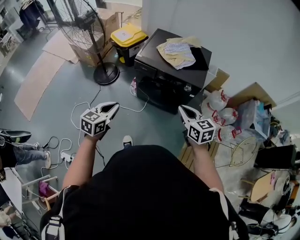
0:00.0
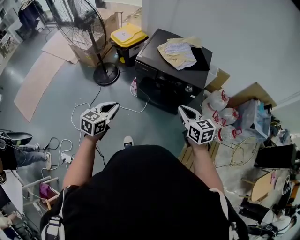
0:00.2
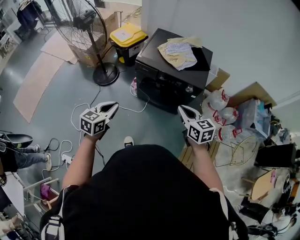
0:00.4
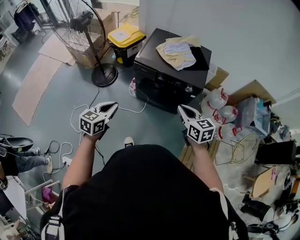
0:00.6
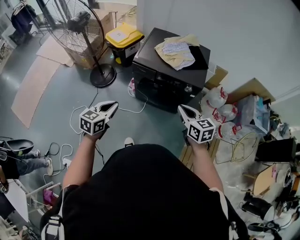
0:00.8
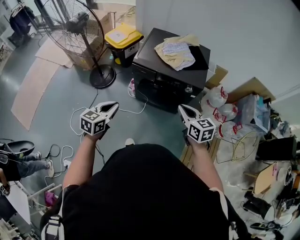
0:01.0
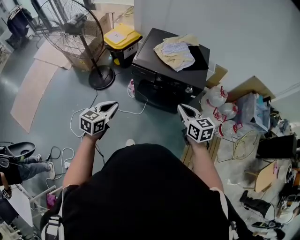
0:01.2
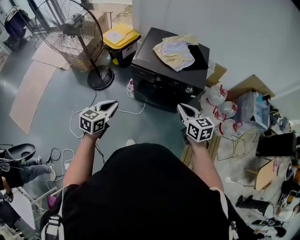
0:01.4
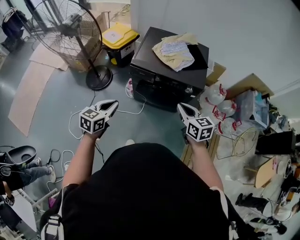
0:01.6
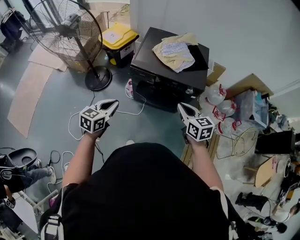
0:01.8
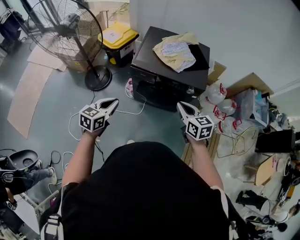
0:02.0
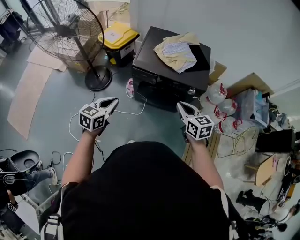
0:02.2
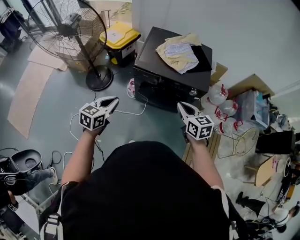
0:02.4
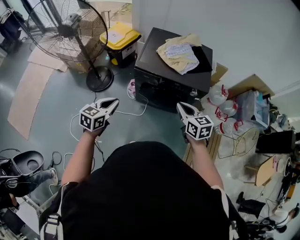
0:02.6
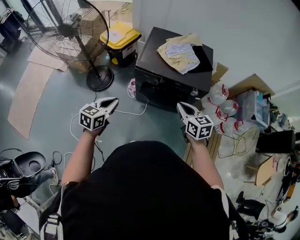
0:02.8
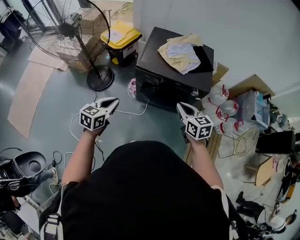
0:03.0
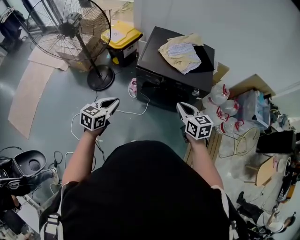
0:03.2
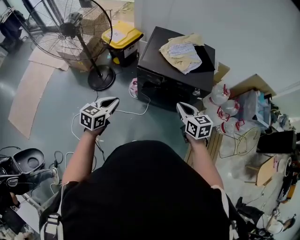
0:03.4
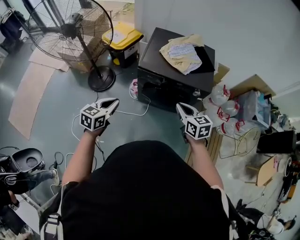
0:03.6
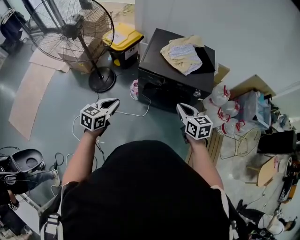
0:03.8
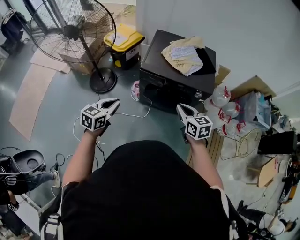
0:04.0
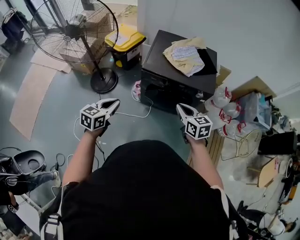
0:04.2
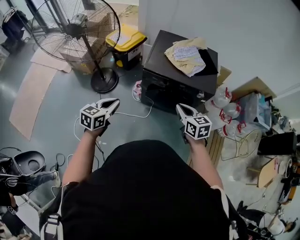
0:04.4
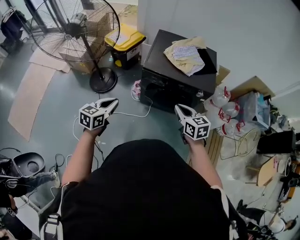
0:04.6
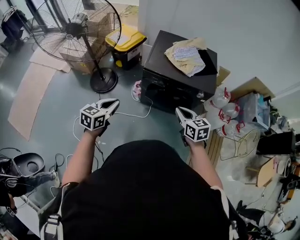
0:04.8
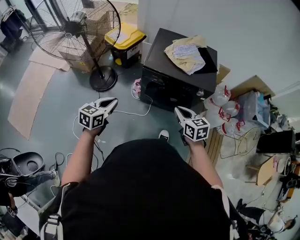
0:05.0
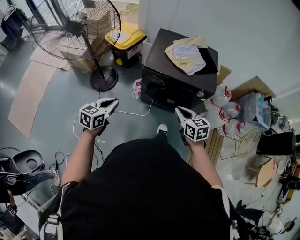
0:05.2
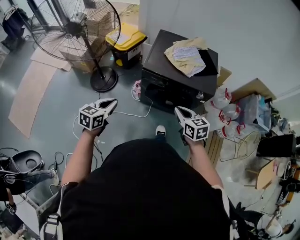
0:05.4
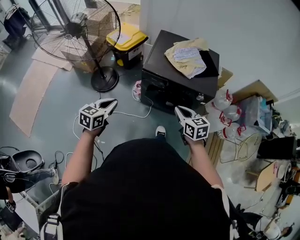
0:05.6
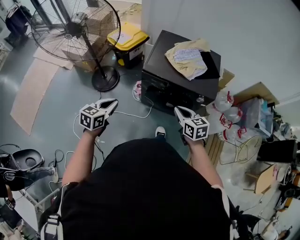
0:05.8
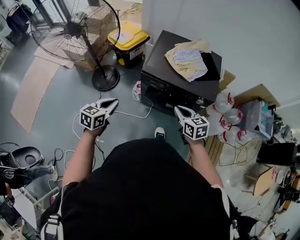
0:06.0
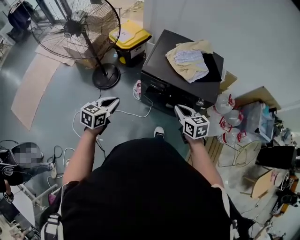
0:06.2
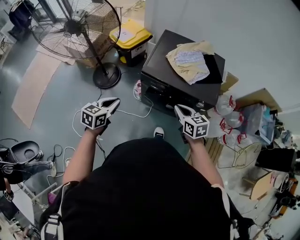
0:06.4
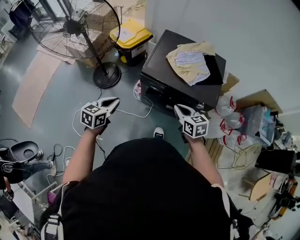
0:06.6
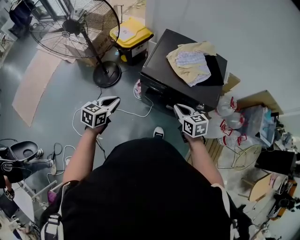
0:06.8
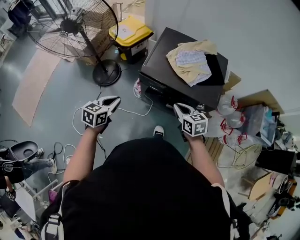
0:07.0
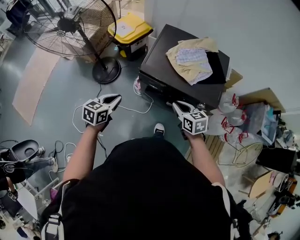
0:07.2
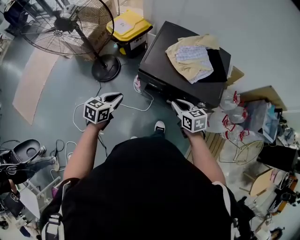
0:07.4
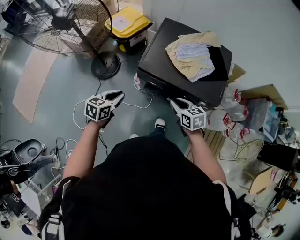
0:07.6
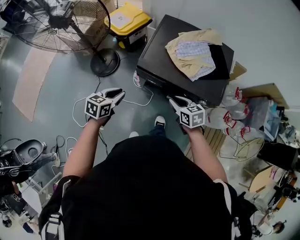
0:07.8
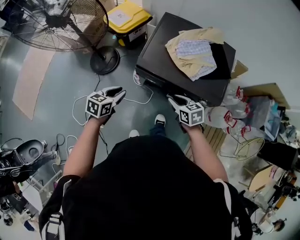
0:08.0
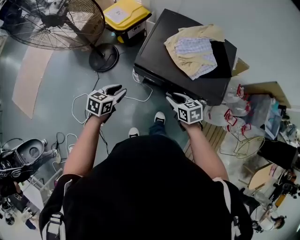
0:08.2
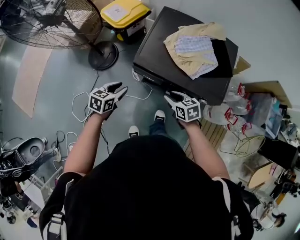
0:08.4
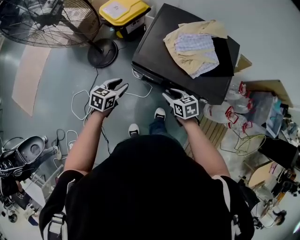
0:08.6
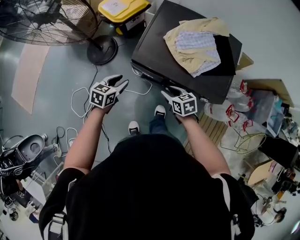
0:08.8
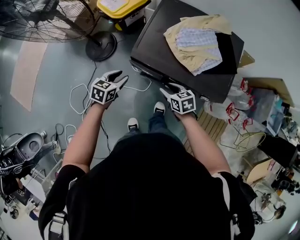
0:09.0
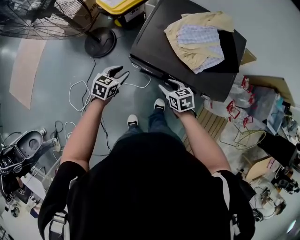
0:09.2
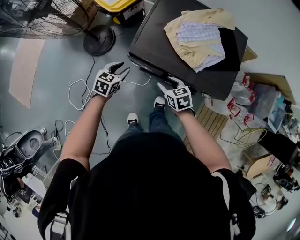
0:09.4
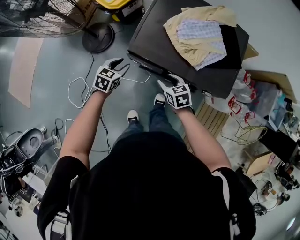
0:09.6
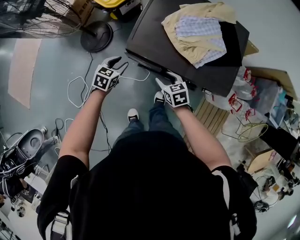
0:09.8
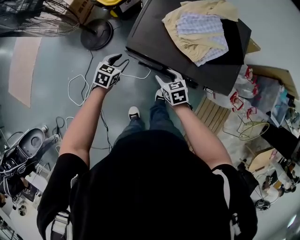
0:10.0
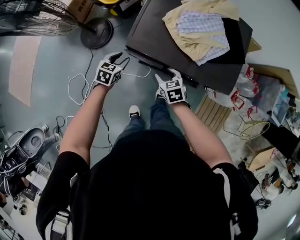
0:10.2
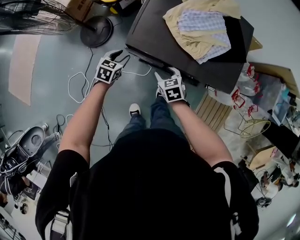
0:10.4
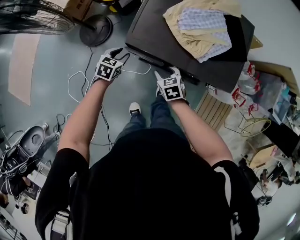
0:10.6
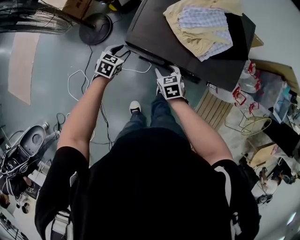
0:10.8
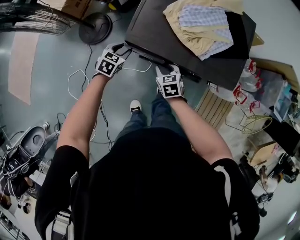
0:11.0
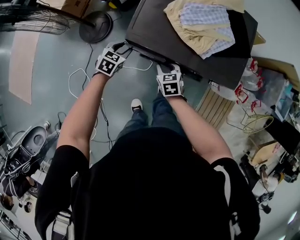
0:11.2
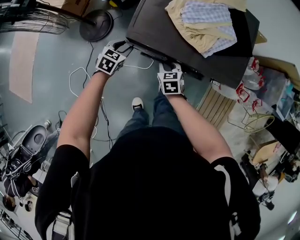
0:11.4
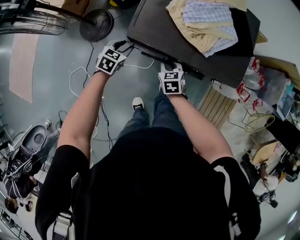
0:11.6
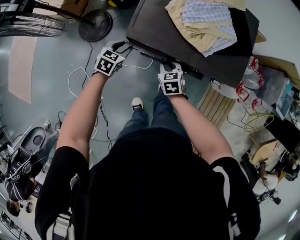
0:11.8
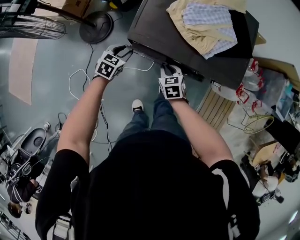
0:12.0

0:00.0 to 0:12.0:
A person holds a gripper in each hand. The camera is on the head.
0:00.0 to 0:01.6: The two grippers go about 10 cm forward.
0:01.6 to 0:03.0: Both grippers travel together to the left, approximately 5 cm.
0:03.0 to 0:04.4: The right gripper changes place by some 5 cm.
0:04.4 to 0:06.0: The right gripper changes place by approximately 5 cm.
0:06.0 to 0:07.6: The left gripper shifts some 15 cm forward, downward and to the right. The right gripper moves forward and downward, roughly 15 cm.
0:07.6 to 0:09.0: The two grippers go some 15 cm downward and forward. The left gripper opens. Meanwhile the right gripper opens its fingers.
0:09.0 to 0:10.4: The right gripper moves downward, some 5 cm; the left gripper shifts about 10 cm downward and forward.
0:10.4 to 0:12.0: The right gripper closes.

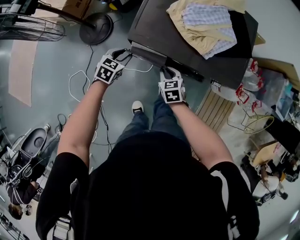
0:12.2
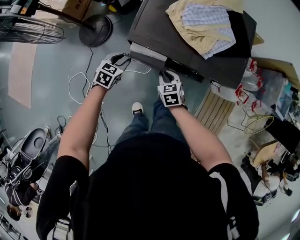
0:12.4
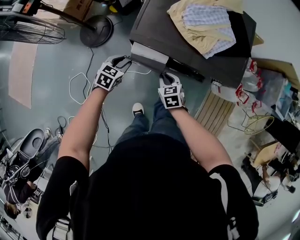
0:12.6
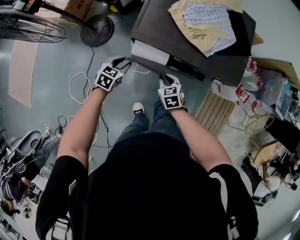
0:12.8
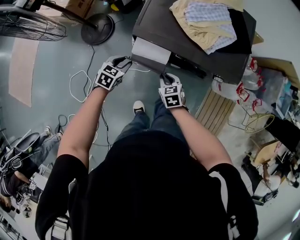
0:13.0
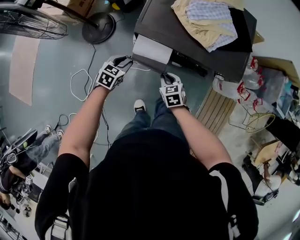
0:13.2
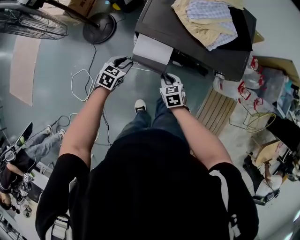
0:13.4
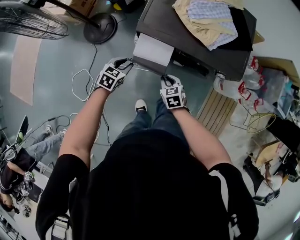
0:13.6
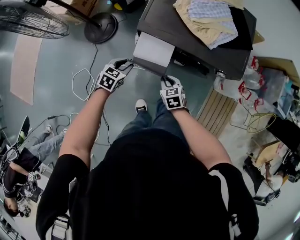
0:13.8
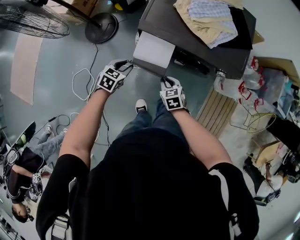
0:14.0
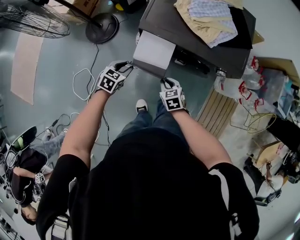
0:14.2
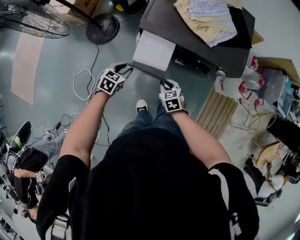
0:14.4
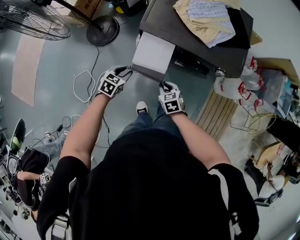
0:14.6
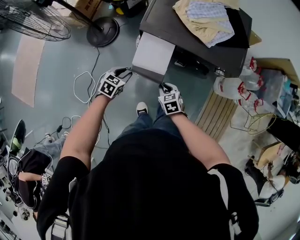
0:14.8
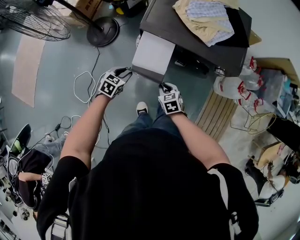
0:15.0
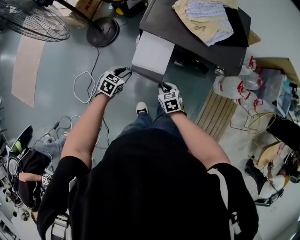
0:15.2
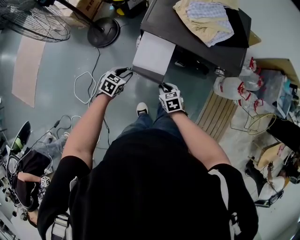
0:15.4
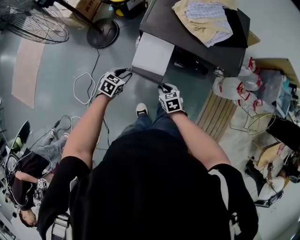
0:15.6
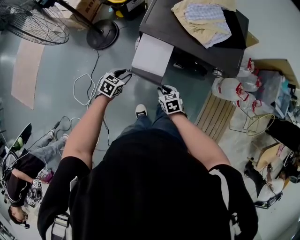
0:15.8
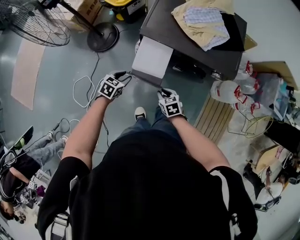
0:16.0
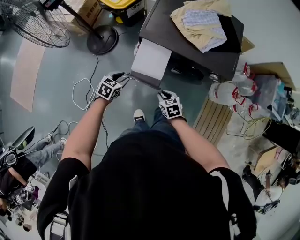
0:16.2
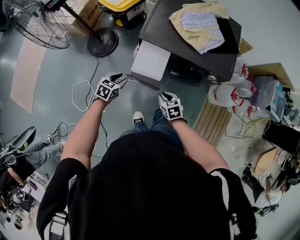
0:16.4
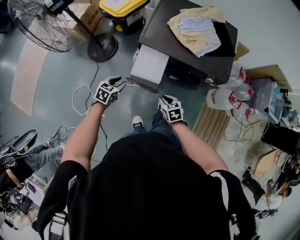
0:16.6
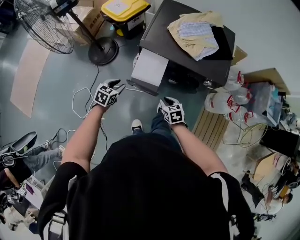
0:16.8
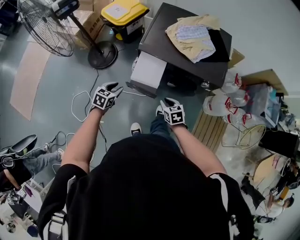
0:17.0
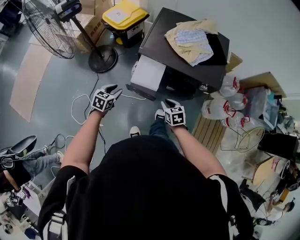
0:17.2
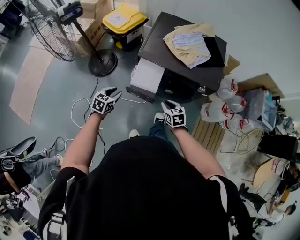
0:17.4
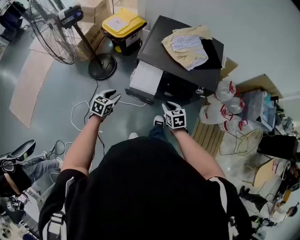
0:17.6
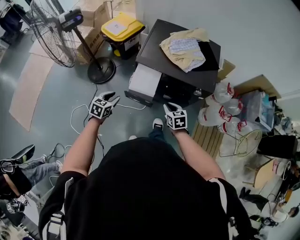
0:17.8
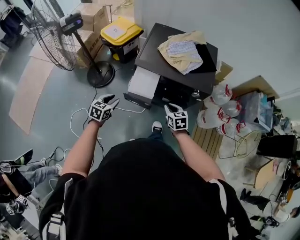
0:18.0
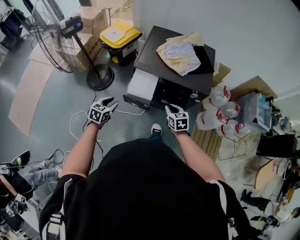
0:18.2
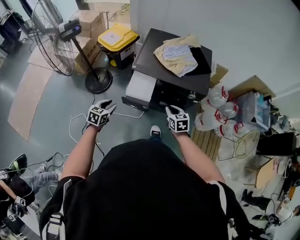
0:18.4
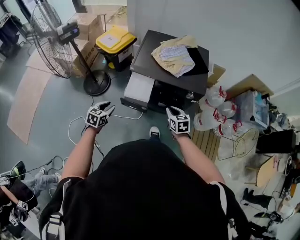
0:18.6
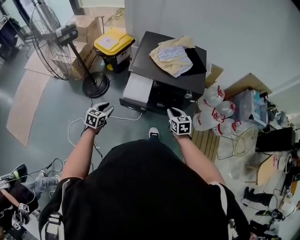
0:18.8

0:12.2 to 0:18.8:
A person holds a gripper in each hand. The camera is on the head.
0:12.2 to 0:13.8: Both grippers move backward, approximately 10 cm.
0:13.8 to 0:15.4: The two grippers go some 5 cm backward.
0:15.4 to 0:17.2: Both grippers travel together upward, approximately 10 cm.
0:17.2 to 0:18.8: The right gripper moves upward and to the right, roughly 15 cm. Meanwhile the left gripper moves upward, approximately 5 cm.

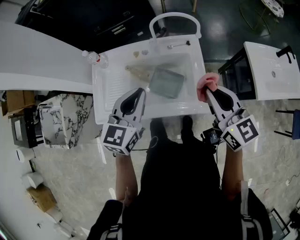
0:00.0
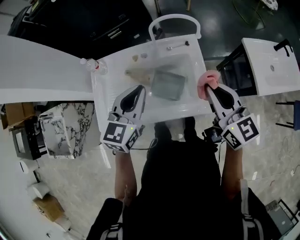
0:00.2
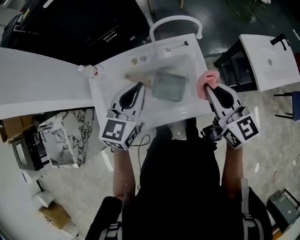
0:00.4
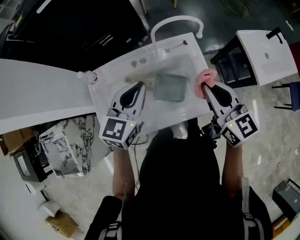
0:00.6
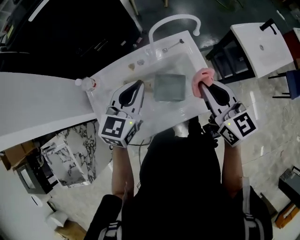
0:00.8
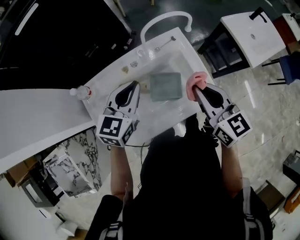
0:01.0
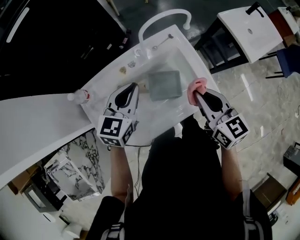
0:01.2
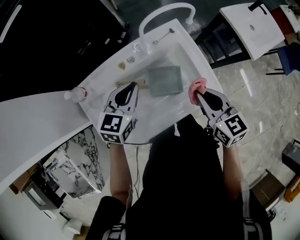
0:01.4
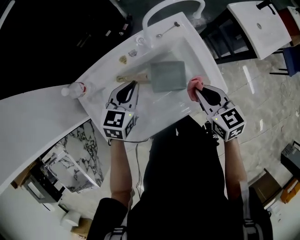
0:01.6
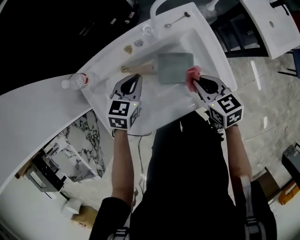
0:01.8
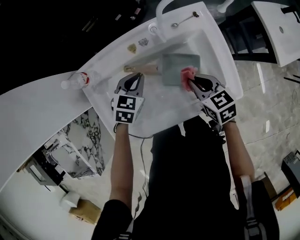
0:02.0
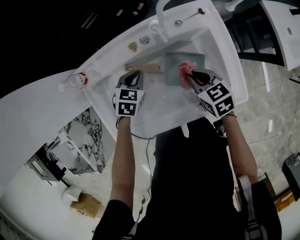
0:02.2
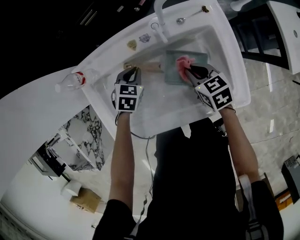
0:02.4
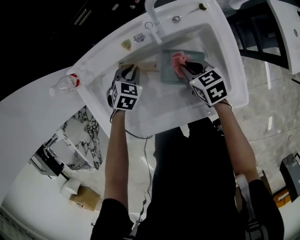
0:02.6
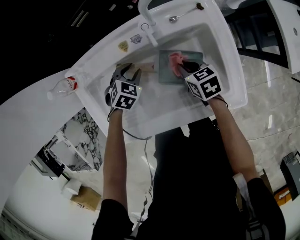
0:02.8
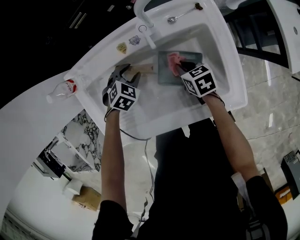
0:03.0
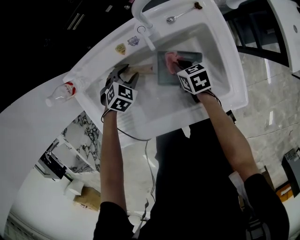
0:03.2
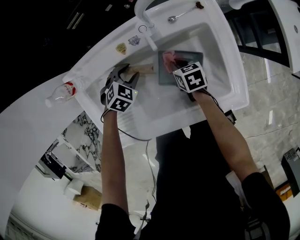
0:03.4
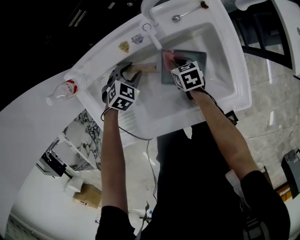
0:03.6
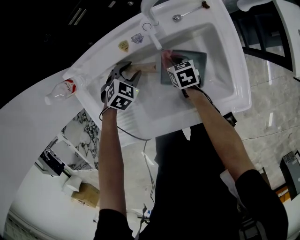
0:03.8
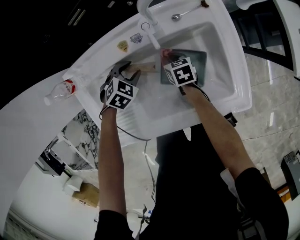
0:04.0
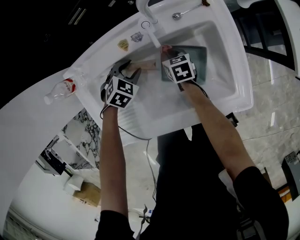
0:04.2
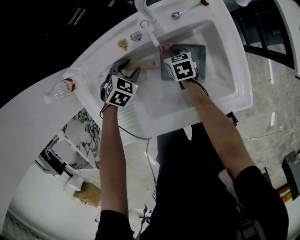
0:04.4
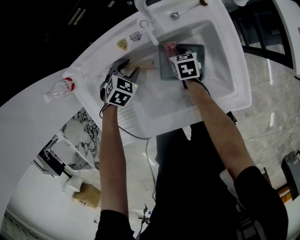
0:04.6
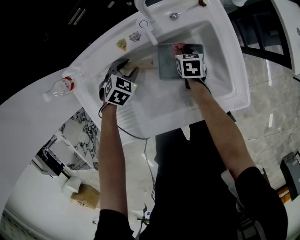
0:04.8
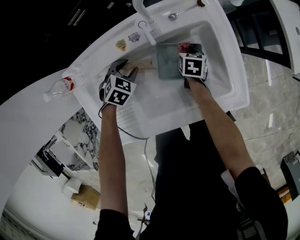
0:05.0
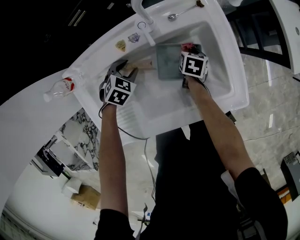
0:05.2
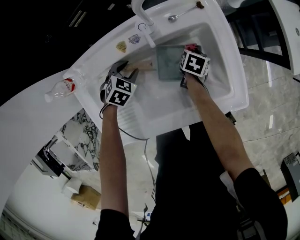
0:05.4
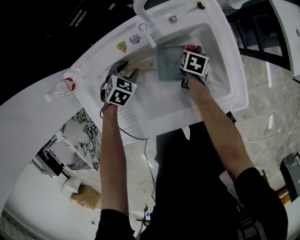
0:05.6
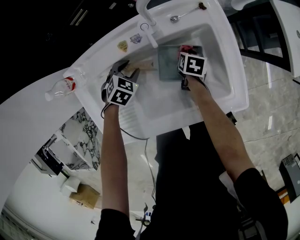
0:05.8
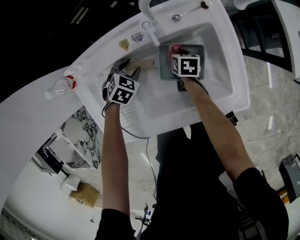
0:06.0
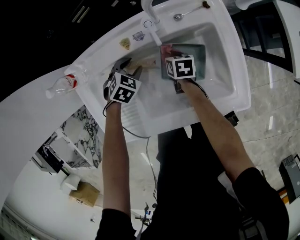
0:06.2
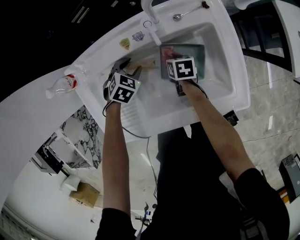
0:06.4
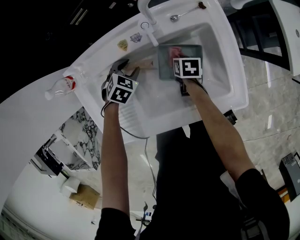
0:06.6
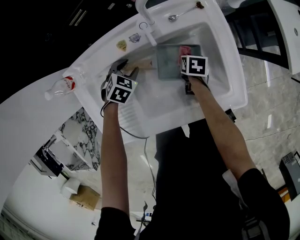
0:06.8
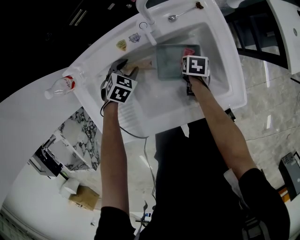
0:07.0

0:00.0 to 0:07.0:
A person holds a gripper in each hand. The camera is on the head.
0:00.0 to 0:01.4: The right gripper shifts some 15 cm downward and to the left, and changes its angle by about 30 degrees; the left gripper is displaced forward, downward and to the left by roughly 20 cm, and changes its angle by some 30 degrees.
0:01.4 to 0:02.8: The left gripper goes about 25 cm downward, points its fingers roughly 40 degrees further downward, and opens up. Meanwhile the right gripper heads downward and forward, covering roughly 30 cm, and swivels approximately 30 degrees.
0:02.8 to 0:04.2: The right gripper travels downward, forward and to the left by some 10 cm.
0:04.2 to 0:05.6: The right gripper travels to the right by about 15 cm, and swivels about 40 degrees.
0:05.6 to 0:07.0: The right gripper travels to the left and back again, approximately 10 cm each way.
